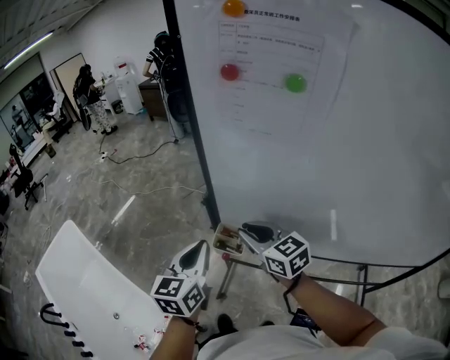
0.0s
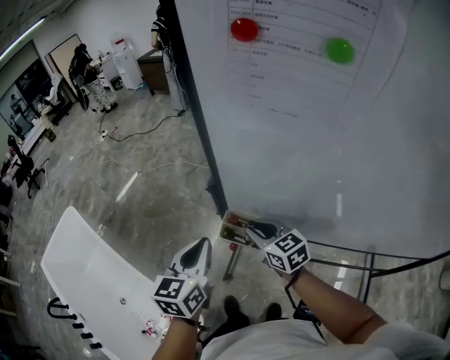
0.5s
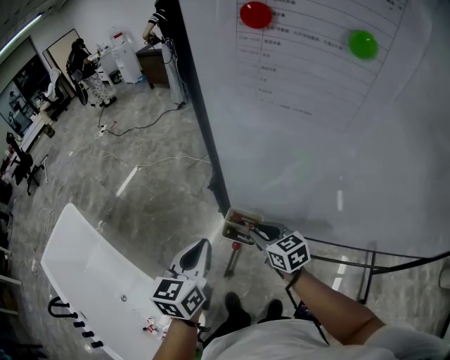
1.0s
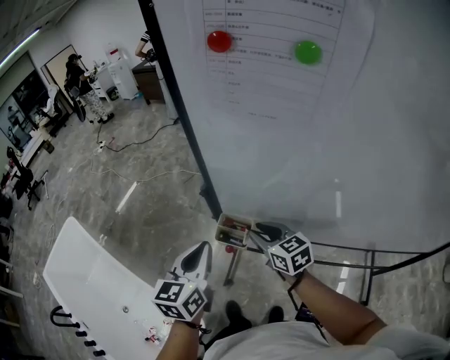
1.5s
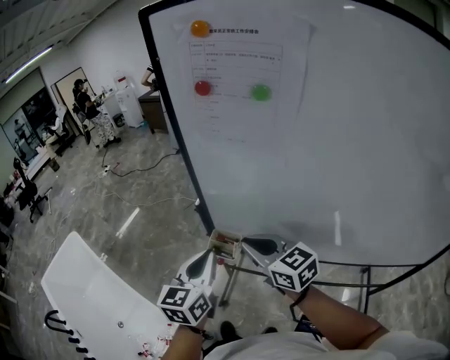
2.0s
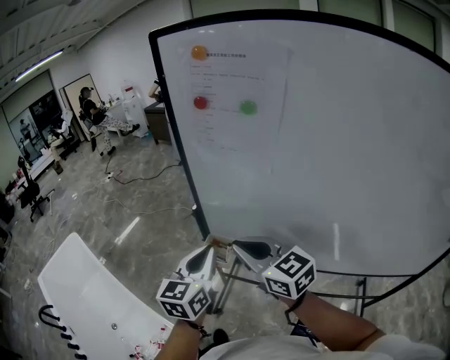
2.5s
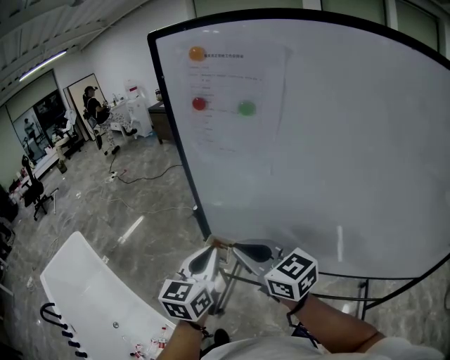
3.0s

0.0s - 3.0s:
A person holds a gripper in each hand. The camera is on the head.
0.0s - 1.5s: The right gripper shifts about 10 cm downward.
1.5s - 3.0s: The left gripper is displaced upward, to the right and backward by some 15 cm. The right gripper goes approximately 25 cm upward and backward, rotates approximately 20 degrees, and closes its fingers.

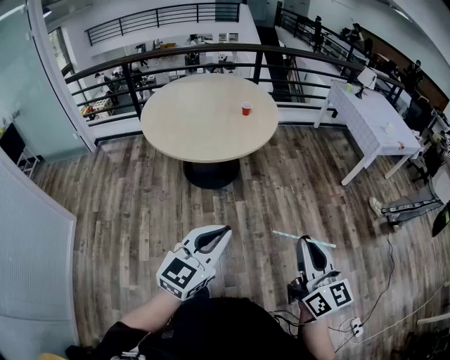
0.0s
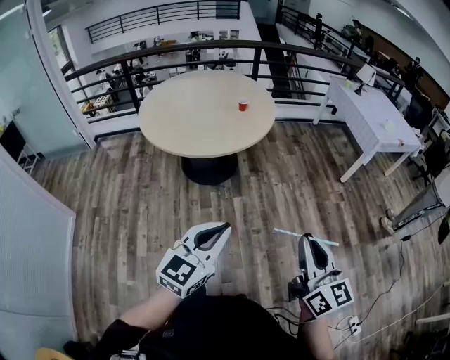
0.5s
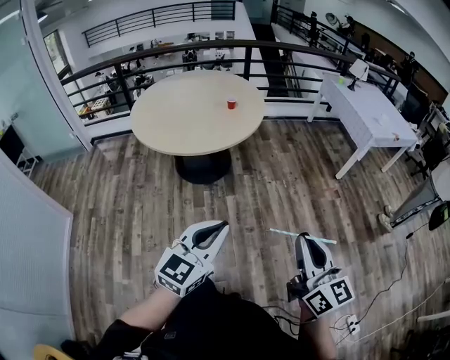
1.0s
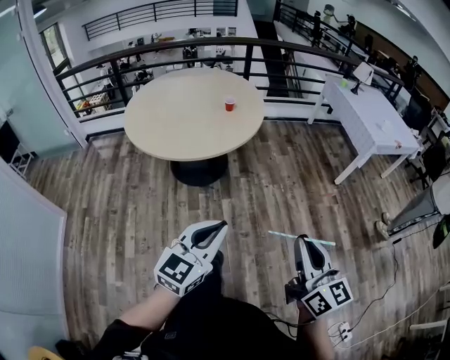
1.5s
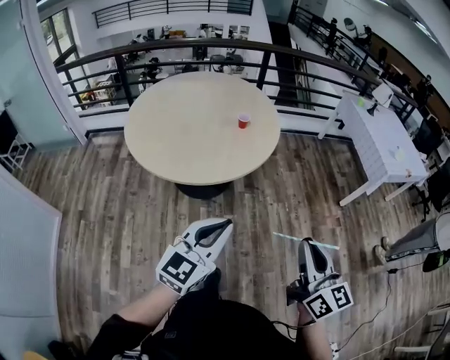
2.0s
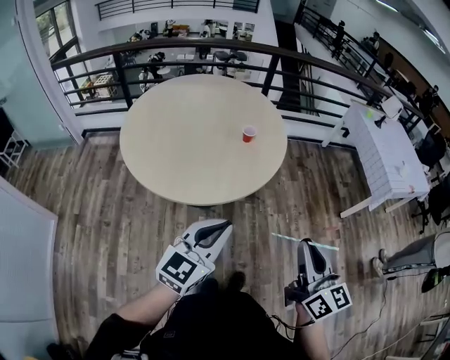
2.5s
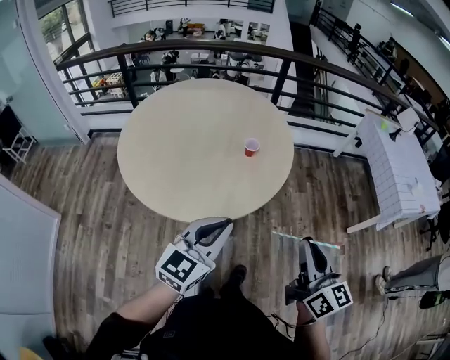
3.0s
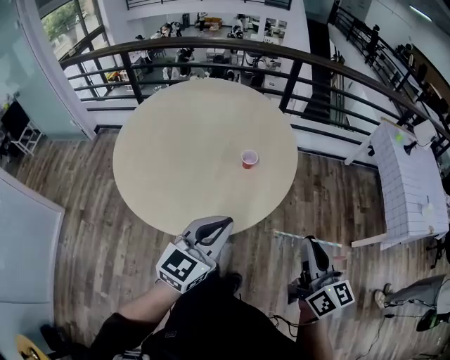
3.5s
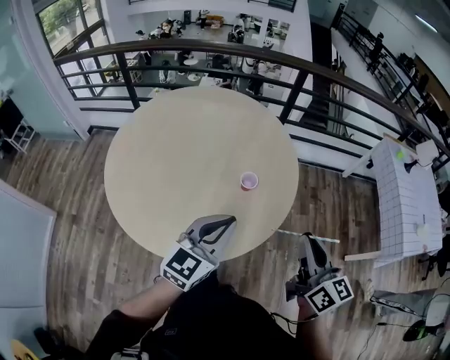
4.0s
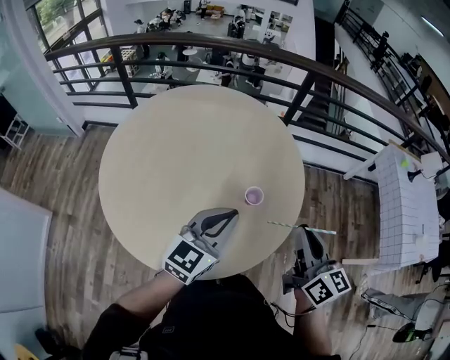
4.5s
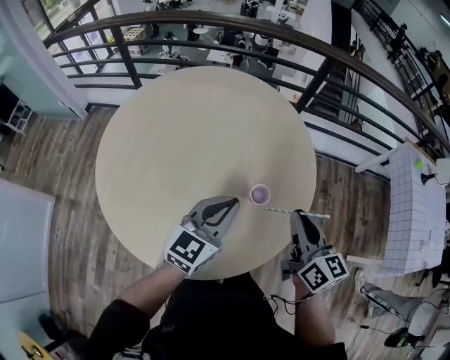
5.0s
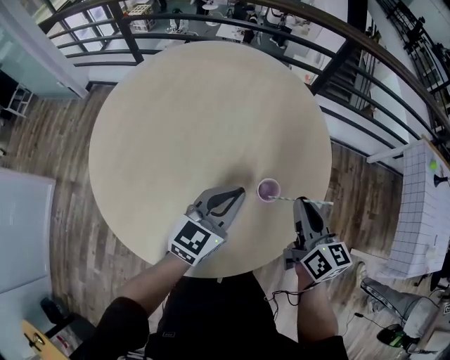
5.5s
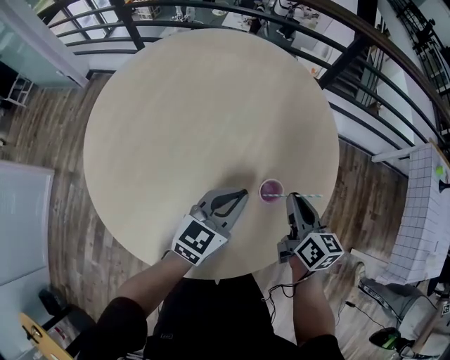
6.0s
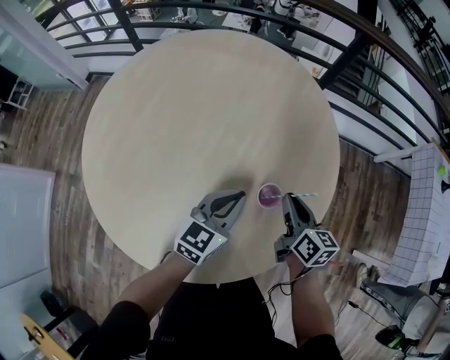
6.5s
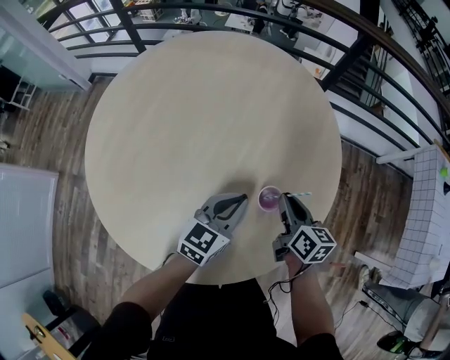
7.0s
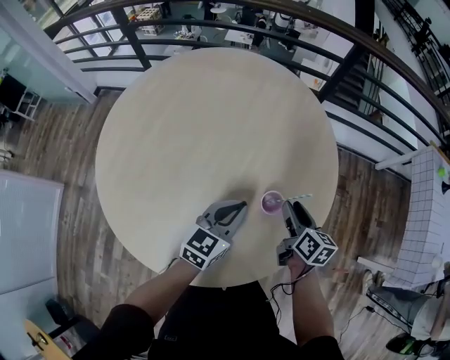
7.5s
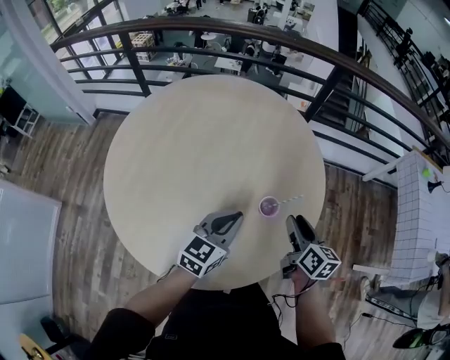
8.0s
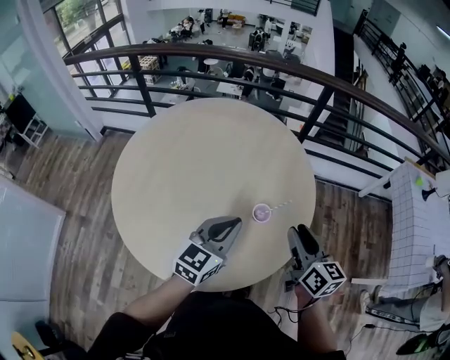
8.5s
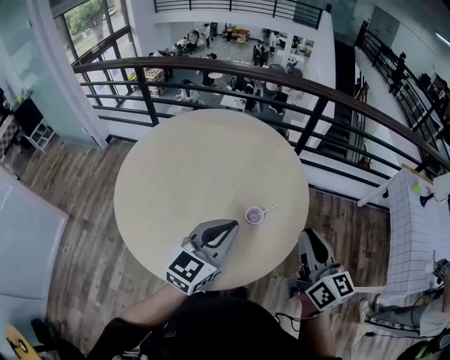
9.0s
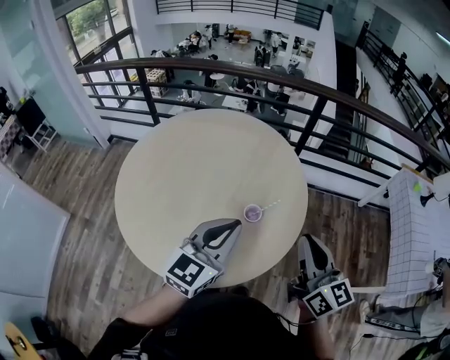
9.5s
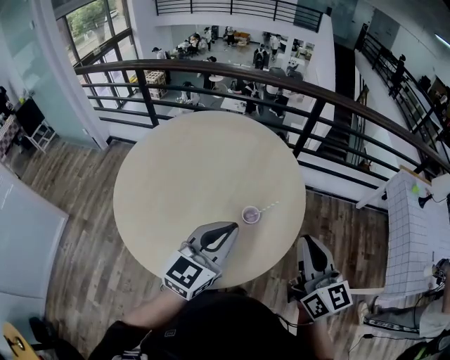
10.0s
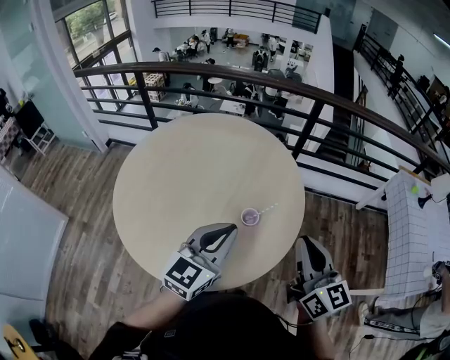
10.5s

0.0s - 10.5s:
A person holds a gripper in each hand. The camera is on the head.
0.0s - 2.0s: The grippers both shift forward by approximately 20 cm.
2.0s - 4.0s: The pair of grippers is taken forward, approximately 50 cm.
4.0s - 6.5s: Both grippers travel together forward and downward, roughly 35 cm. The right gripper rotates roughly 30 degrees.
6.5s - 8.5s: The two grippers go approximately 20 cm upward and backward. The right gripper opens its fingers.
8.5s - 10.5s: The right gripper shifts some 15 cm upward and backward, and closes. The left gripper heads upward, covering about 10 cm.

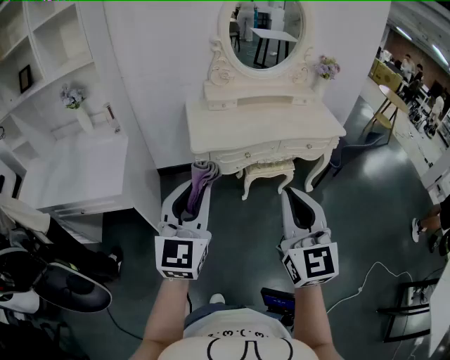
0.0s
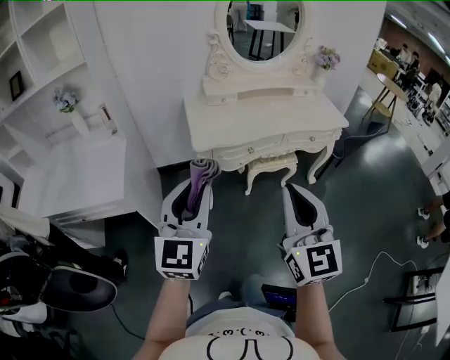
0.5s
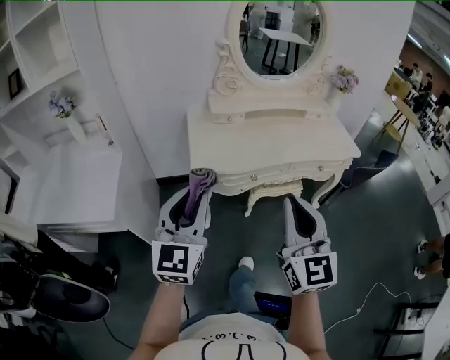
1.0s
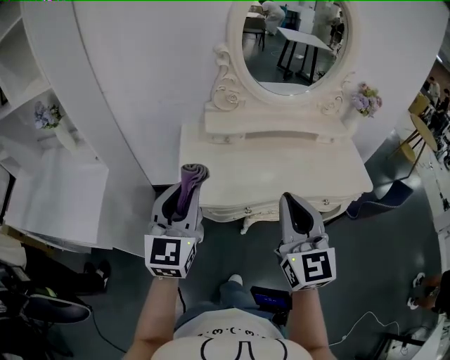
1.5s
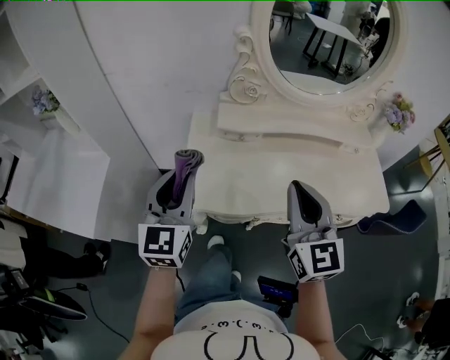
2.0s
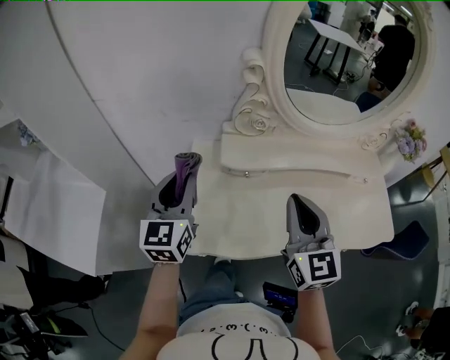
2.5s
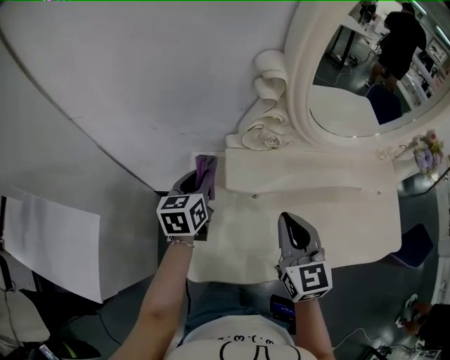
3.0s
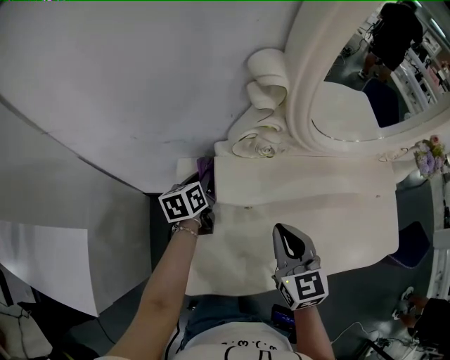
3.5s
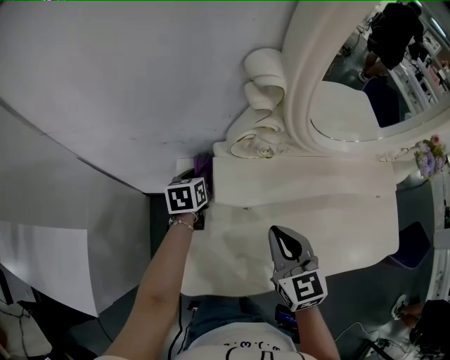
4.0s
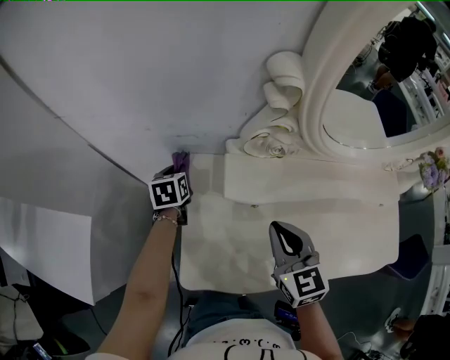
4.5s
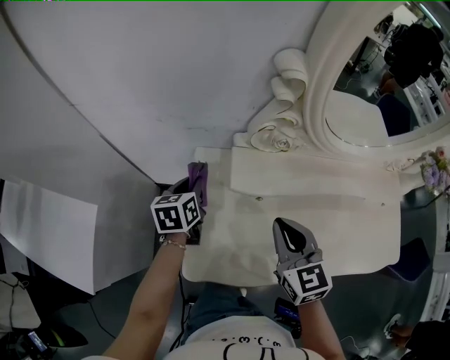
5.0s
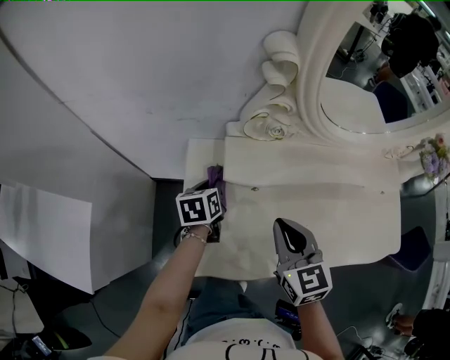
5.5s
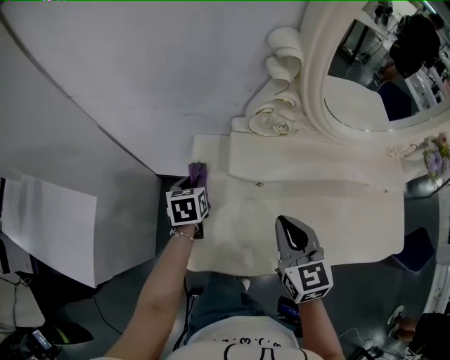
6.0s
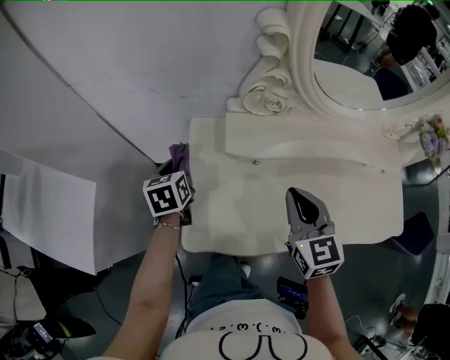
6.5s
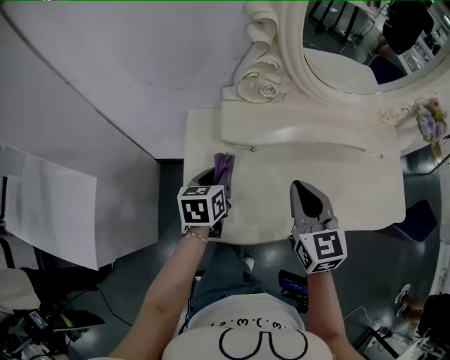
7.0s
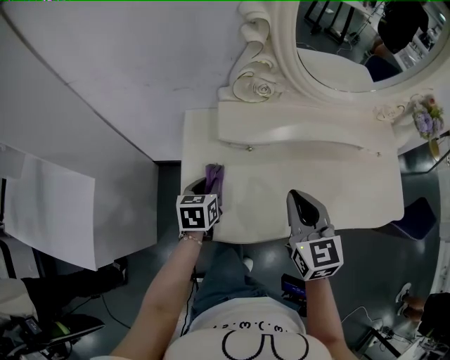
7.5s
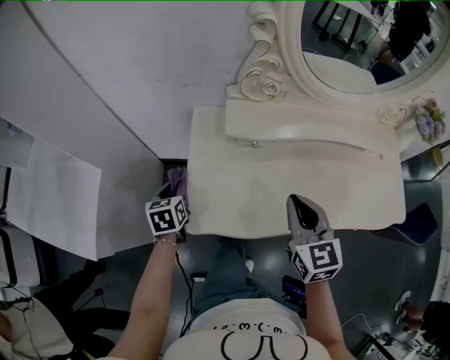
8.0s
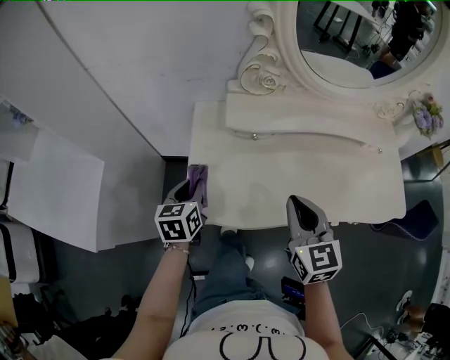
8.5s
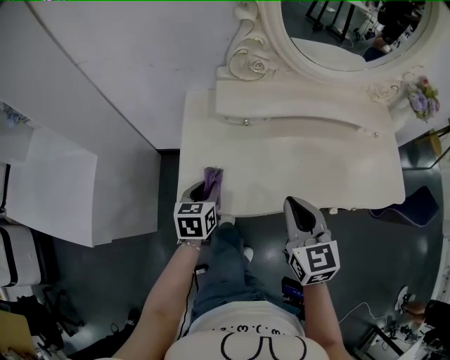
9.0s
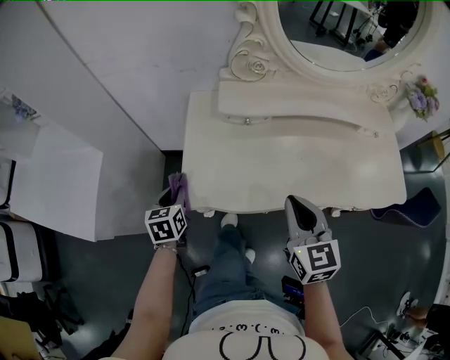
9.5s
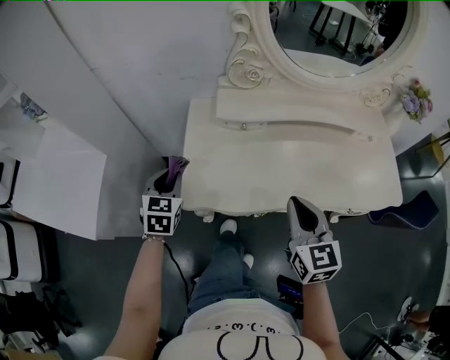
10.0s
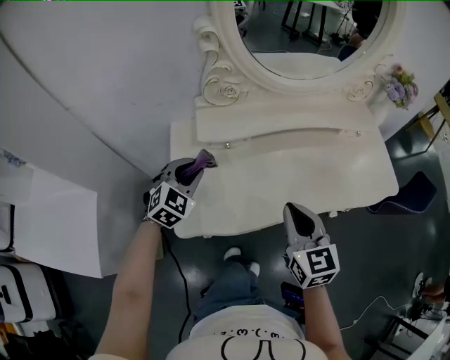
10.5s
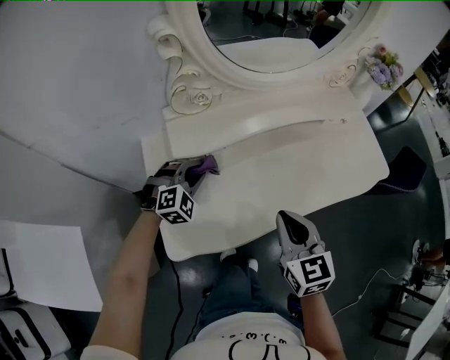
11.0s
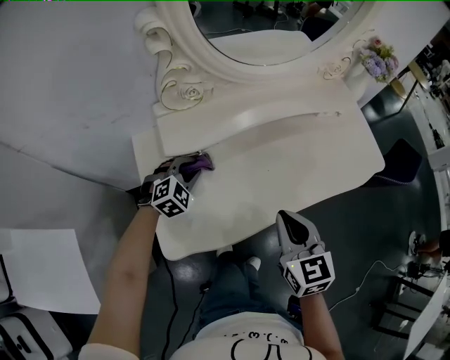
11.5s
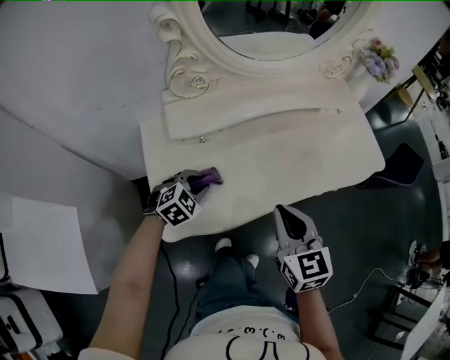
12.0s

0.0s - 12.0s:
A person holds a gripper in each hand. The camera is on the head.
0.0s - 2.0s: The two grippers travel together, forward, some 50 cm.
2.0s - 4.0s: The right gripper travels forward and downward by some 30 cm, and turns by about 20 degrees; the left gripper travels forward and downward by roughly 50 cm, and tips its fingers downward by roughly 40 degrees.
4.0s - 6.0s: The left gripper goes left and right, about 10 cm each way, reversing 2 times.
6.0s - 8.0s: The left gripper goes left and right, about 15 cm each way, reversing 2 times, while the right gripper shifts approximately 10 cm backward.
8.0s - 10.0s: The left gripper shifts roughly 10 cm upward and backward, moves approximately 15 cm to the right and comes back, and turns by roughly 30 degrees. Meanwhile the right gripper shifts about 10 cm backward.
10.0s - 12.0s: The left gripper moves some 20 cm, and rotates some 60 degrees.

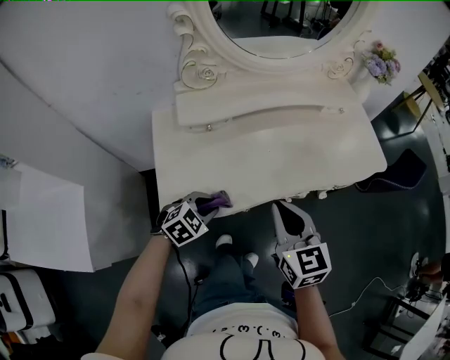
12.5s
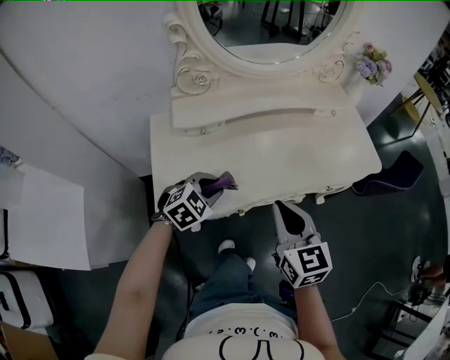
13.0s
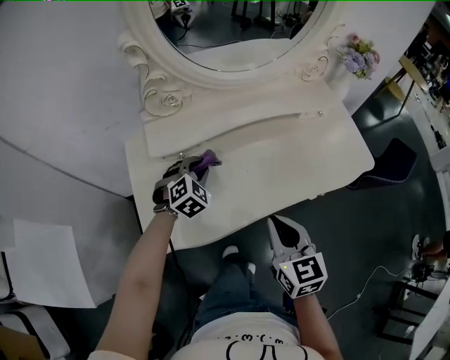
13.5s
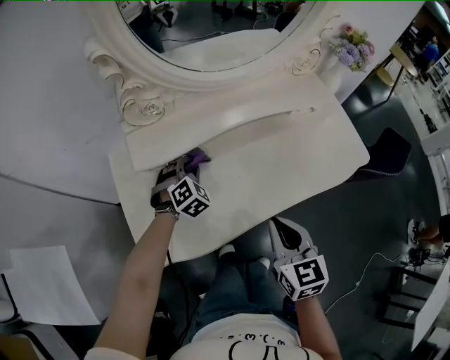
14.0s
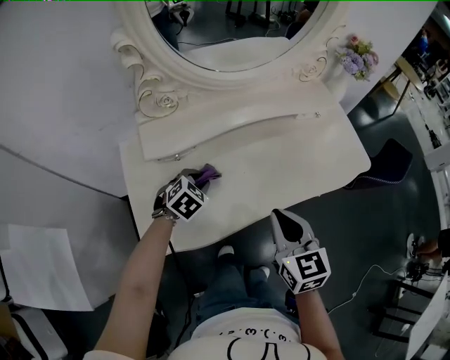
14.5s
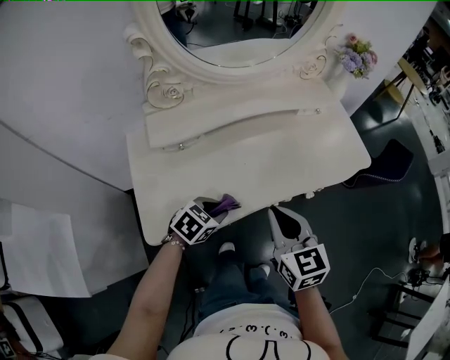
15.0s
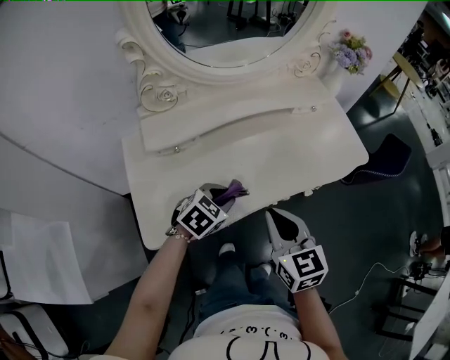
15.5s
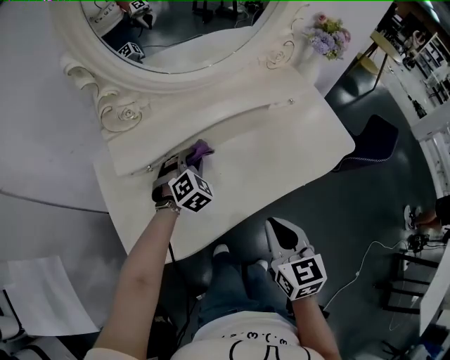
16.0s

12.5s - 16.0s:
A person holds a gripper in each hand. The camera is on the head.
12.5s - 14.5s: The left gripper travels forward by about 20 cm; the right gripper heads forward, covering about 5 cm.
14.5s - 16.0s: The right gripper changes place by some 5 cm; the left gripper goes approximately 10 cm forward, and changes its angle by approximately 30 degrees.
